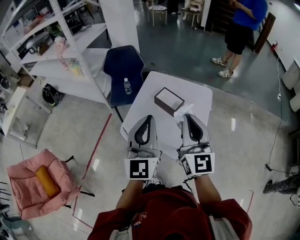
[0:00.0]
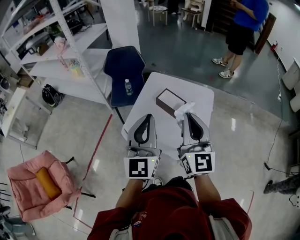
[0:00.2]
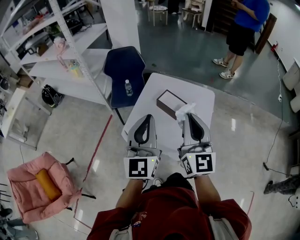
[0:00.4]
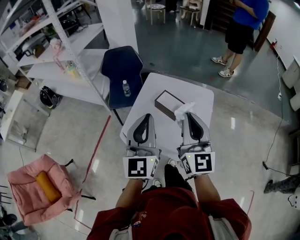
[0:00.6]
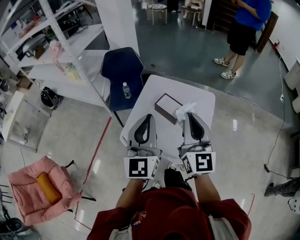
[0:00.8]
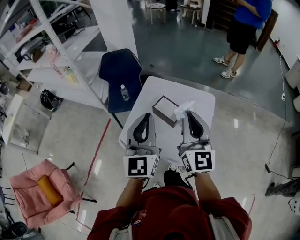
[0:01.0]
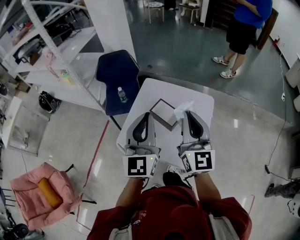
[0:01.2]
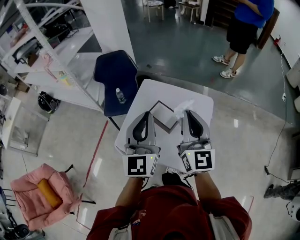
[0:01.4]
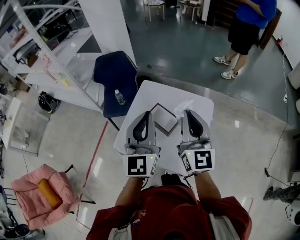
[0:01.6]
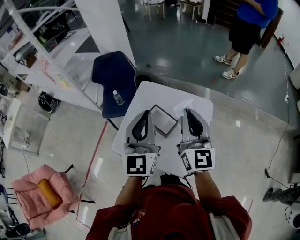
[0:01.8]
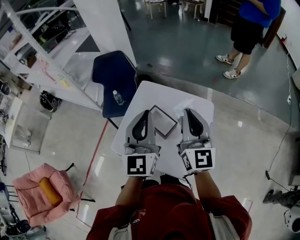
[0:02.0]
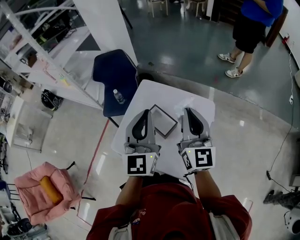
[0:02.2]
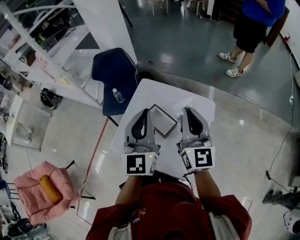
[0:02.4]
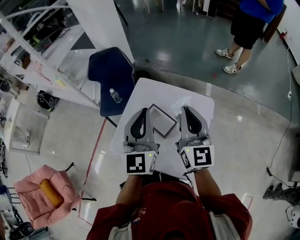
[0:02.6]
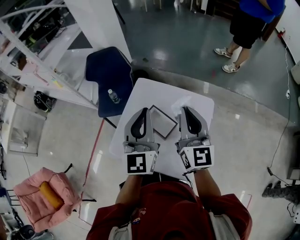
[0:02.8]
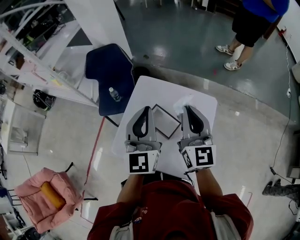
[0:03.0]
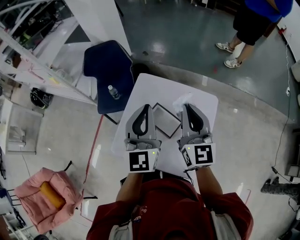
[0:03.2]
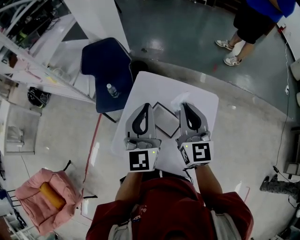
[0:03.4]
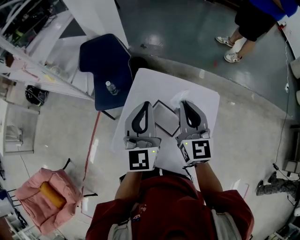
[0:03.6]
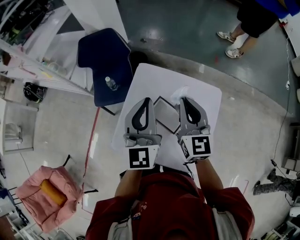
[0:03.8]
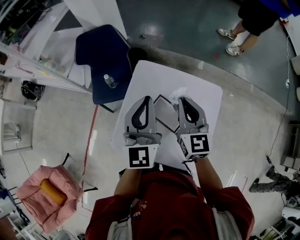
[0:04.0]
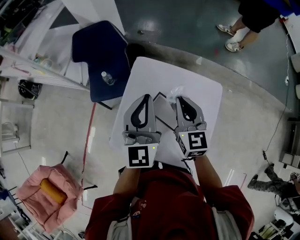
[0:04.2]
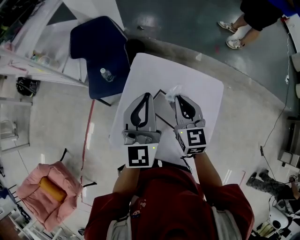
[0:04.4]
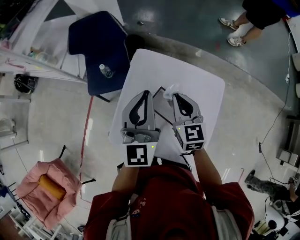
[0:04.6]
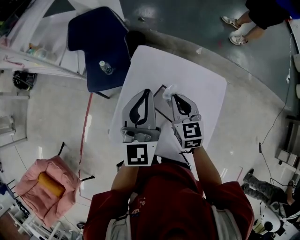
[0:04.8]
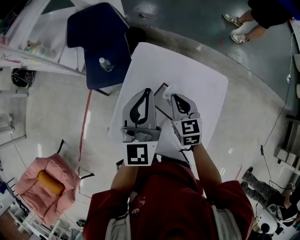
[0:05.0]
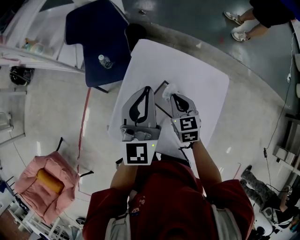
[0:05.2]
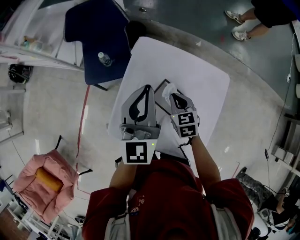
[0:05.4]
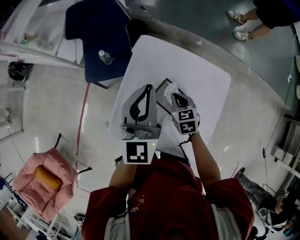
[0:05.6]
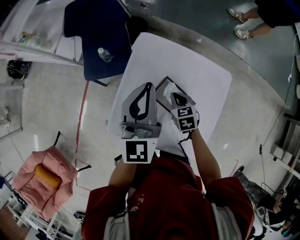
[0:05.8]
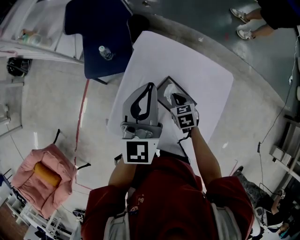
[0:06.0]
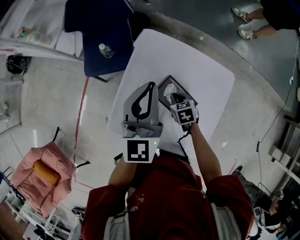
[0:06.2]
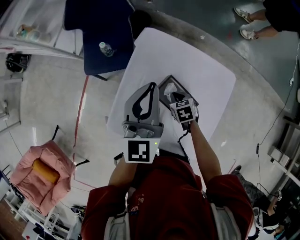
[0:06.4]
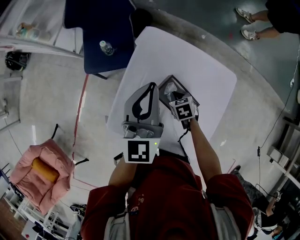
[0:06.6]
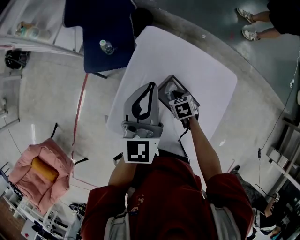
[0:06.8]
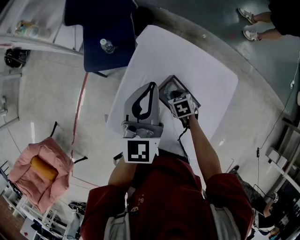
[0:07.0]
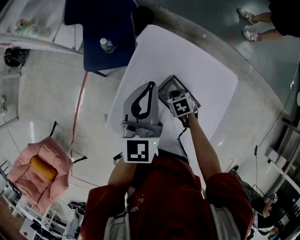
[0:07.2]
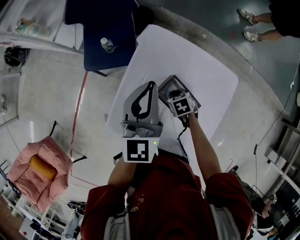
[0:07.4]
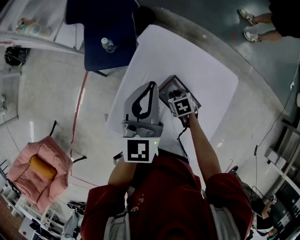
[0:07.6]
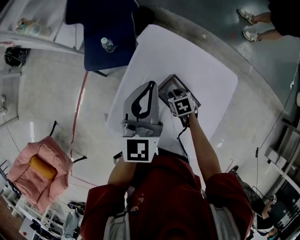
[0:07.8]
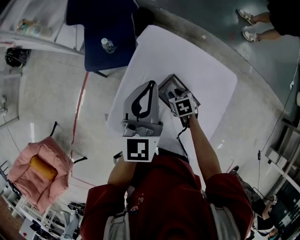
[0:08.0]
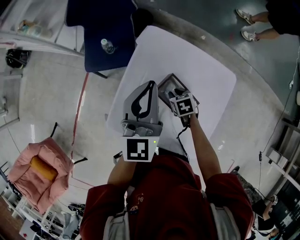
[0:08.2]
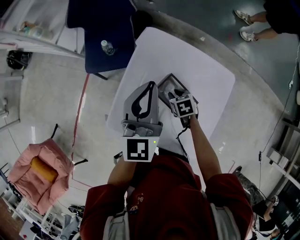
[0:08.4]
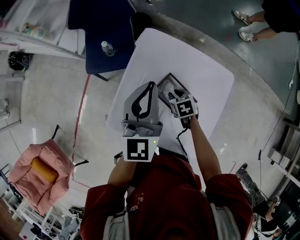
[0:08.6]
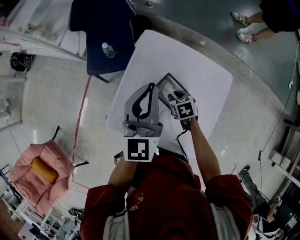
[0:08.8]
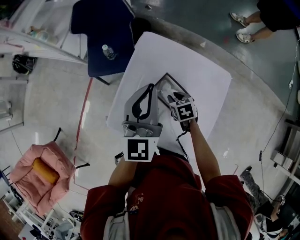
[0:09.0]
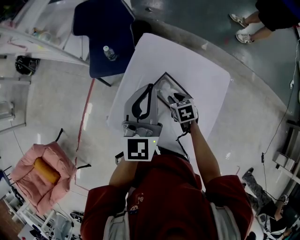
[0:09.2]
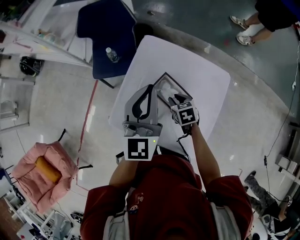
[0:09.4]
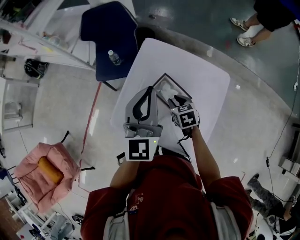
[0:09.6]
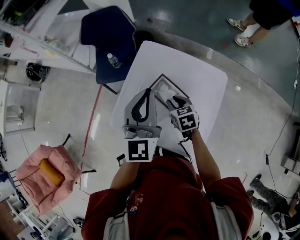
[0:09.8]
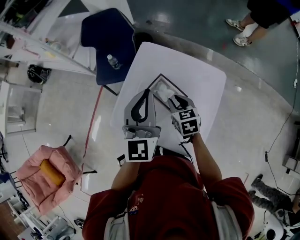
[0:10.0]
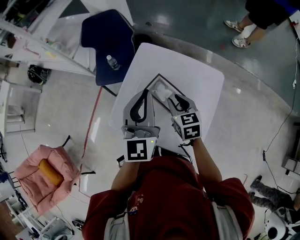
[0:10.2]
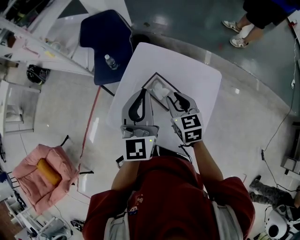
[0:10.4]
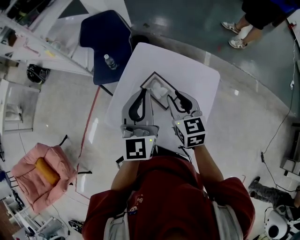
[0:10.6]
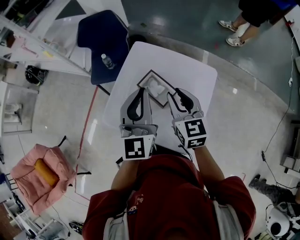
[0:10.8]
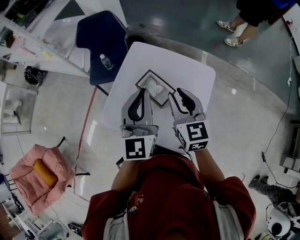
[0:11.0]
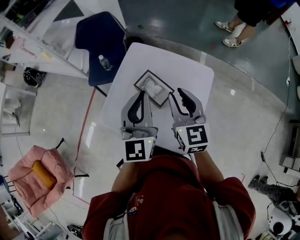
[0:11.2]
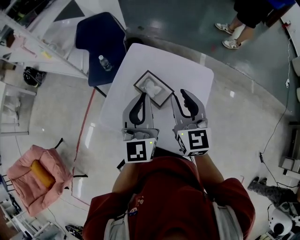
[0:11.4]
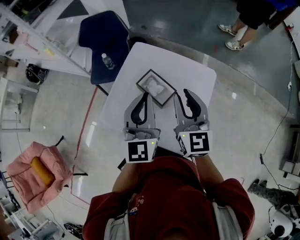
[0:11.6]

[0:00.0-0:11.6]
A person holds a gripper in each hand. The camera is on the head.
0:00.0 to 0:01.4: The grippers both shift forward by about 20 cm.
0:01.4 to 0:02.8: The grippers both shift forward by approximately 10 cm.
0:02.8 to 0:04.4: The right gripper is displaced downward, forward and to the left by approximately 20 cm, and changes its angle by approximately 20 degrees; the left gripper moves forward, to the left and downward, approximately 15 cm.
0:04.4 to 0:05.8: The right gripper moves downward, approximately 20 cm, and angles its fingers downward, by some 30 degrees; the left gripper moves approximately 5 cm.
0:05.8 to 0:07.2: The left gripper moves approximately 5 cm. The right gripper moves downward, roughly 10 cm, and turns by about 20 degrees.
0:07.2 to 0:08.8: The left gripper changes place by roughly 5 cm. The right gripper heads upward, covering approximately 5 cm, and opens up.
0:08.8 to 0:10.2: The left gripper goes roughly 15 cm backward and upward, while the right gripper is displaced upward and backward by approximately 20 cm, and rotates roughly 30 degrees.
0:10.2 to 0:11.6: The right gripper is displaced upward and backward by about 15 cm, and swivels some 30 degrees. Meanwhile the left gripper heads backward, covering approximately 5 cm.

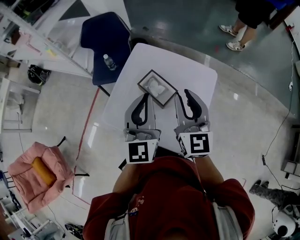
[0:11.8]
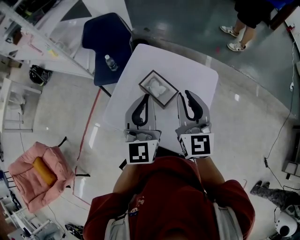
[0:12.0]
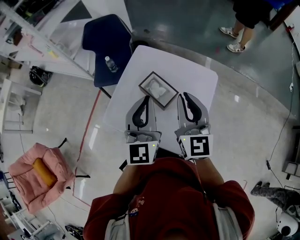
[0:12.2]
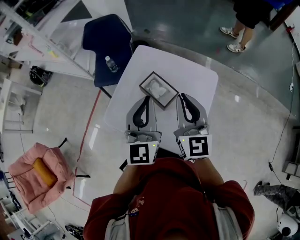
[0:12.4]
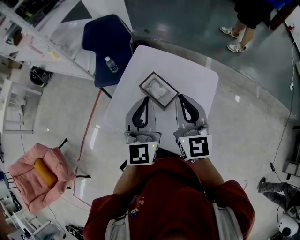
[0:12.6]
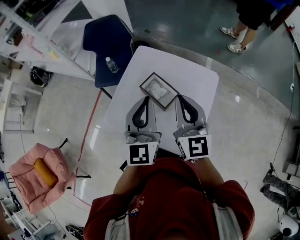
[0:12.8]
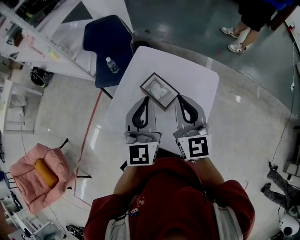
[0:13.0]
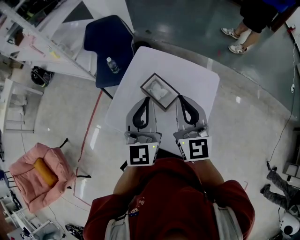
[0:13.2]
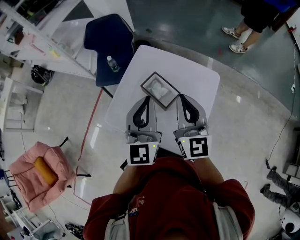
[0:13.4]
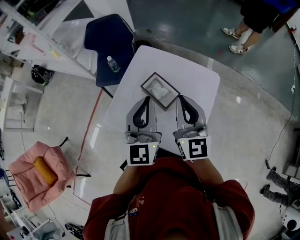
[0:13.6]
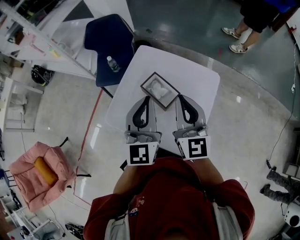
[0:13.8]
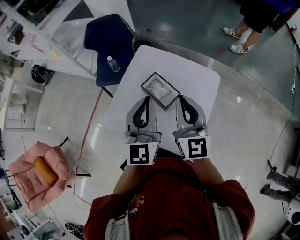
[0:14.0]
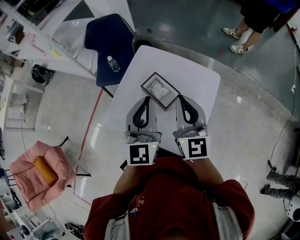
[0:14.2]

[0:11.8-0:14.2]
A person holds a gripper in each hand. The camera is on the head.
0:11.8 to 0:13.0: The right gripper closes up.
0:13.0 to 0:14.2: The grippers stay close to where they were, moving slightly.

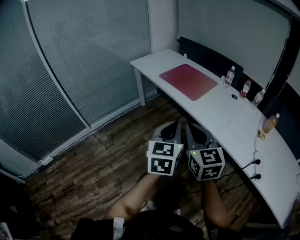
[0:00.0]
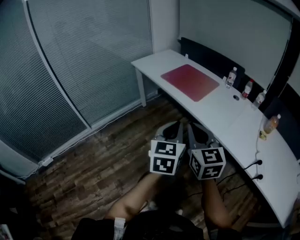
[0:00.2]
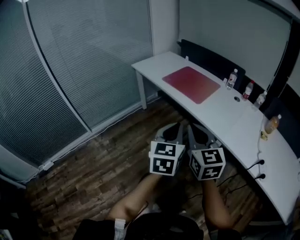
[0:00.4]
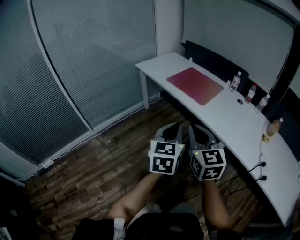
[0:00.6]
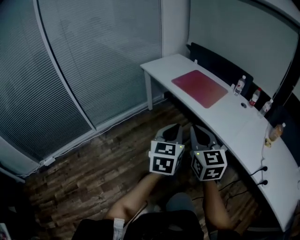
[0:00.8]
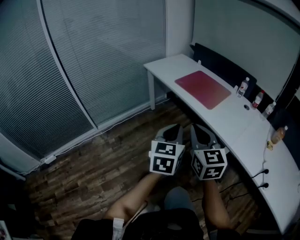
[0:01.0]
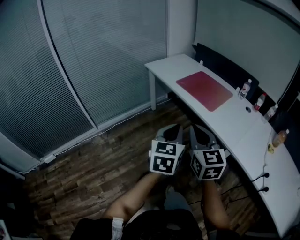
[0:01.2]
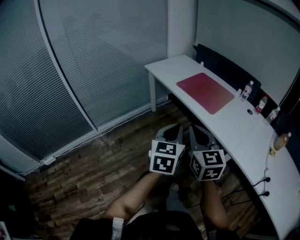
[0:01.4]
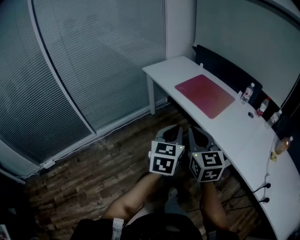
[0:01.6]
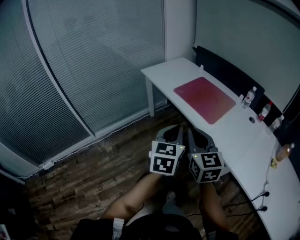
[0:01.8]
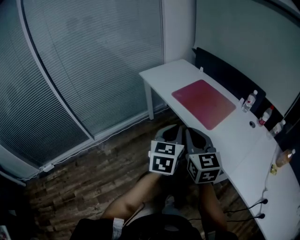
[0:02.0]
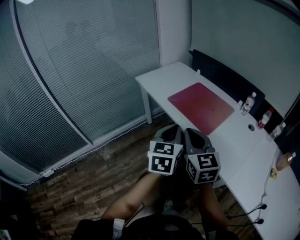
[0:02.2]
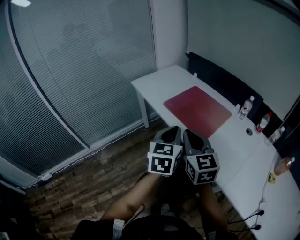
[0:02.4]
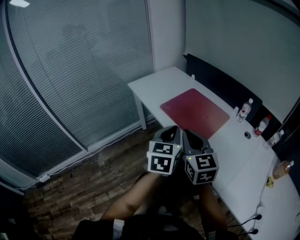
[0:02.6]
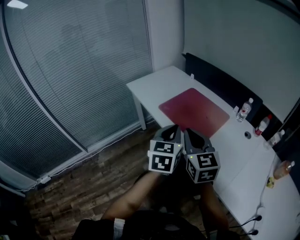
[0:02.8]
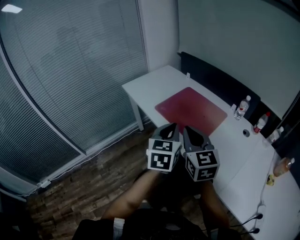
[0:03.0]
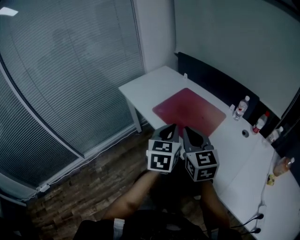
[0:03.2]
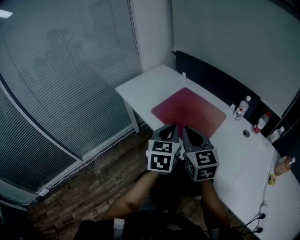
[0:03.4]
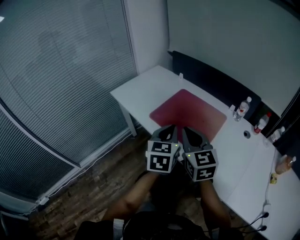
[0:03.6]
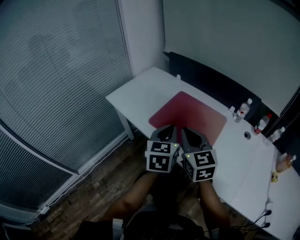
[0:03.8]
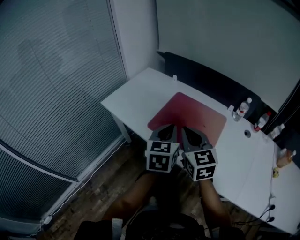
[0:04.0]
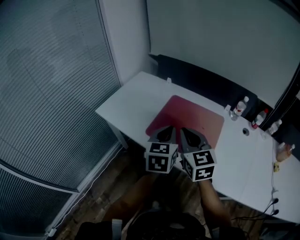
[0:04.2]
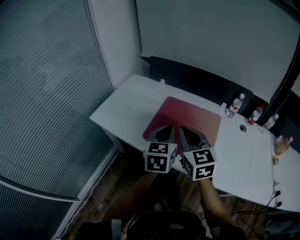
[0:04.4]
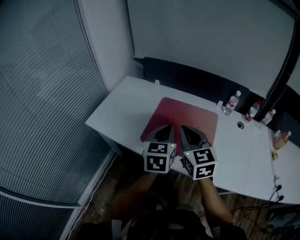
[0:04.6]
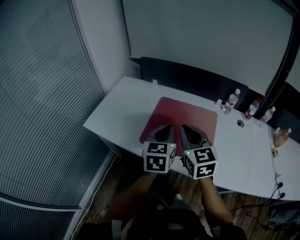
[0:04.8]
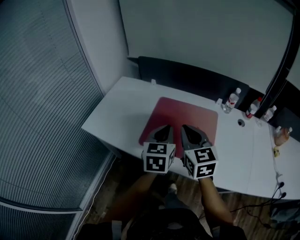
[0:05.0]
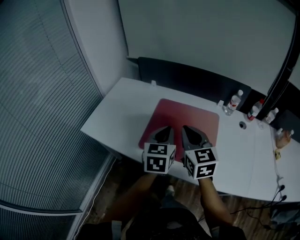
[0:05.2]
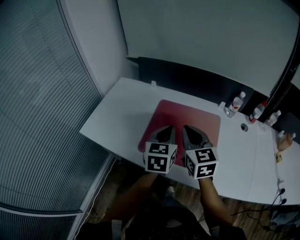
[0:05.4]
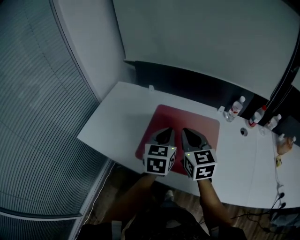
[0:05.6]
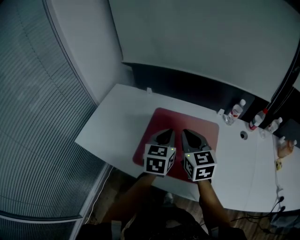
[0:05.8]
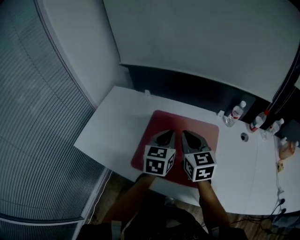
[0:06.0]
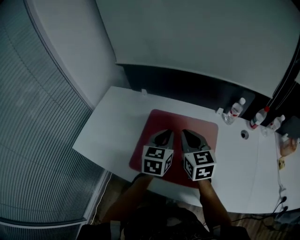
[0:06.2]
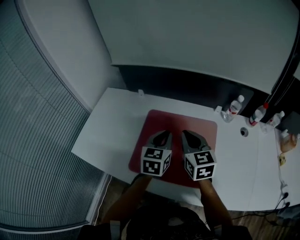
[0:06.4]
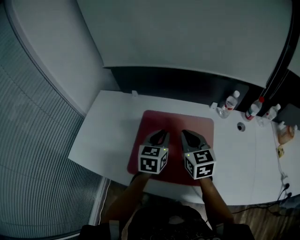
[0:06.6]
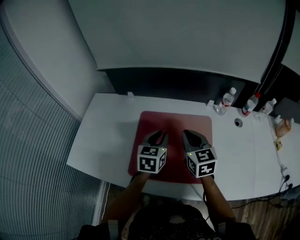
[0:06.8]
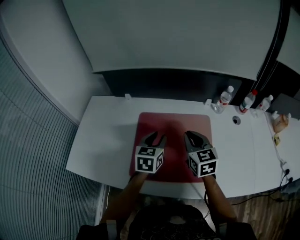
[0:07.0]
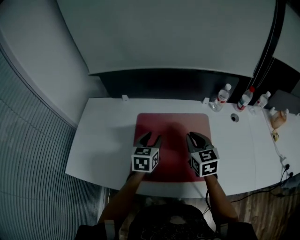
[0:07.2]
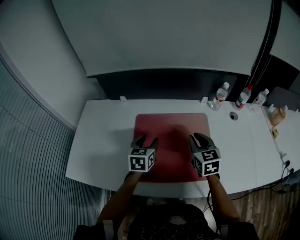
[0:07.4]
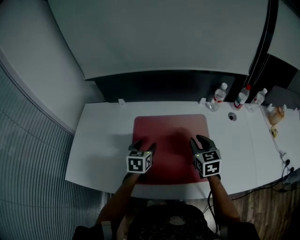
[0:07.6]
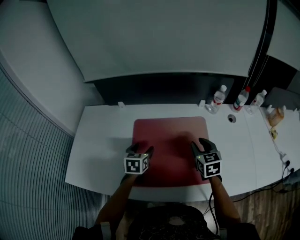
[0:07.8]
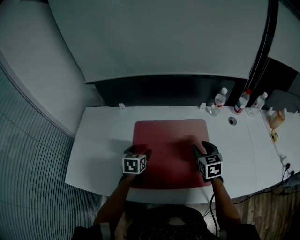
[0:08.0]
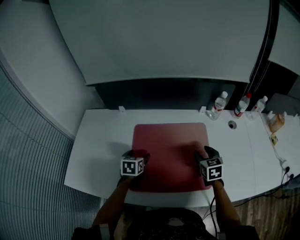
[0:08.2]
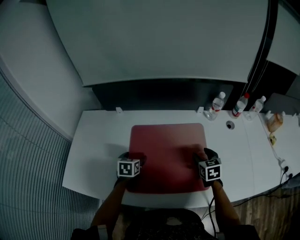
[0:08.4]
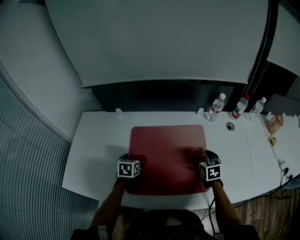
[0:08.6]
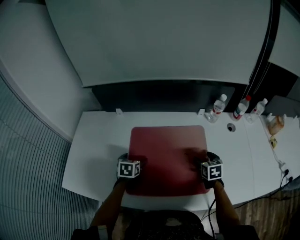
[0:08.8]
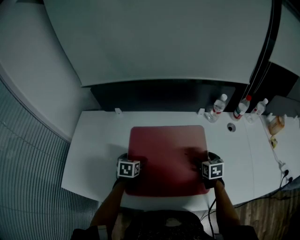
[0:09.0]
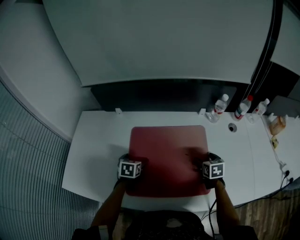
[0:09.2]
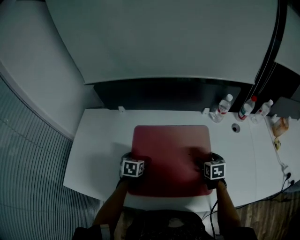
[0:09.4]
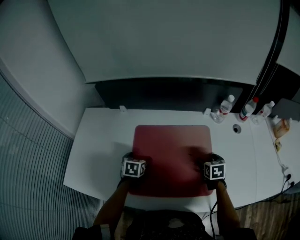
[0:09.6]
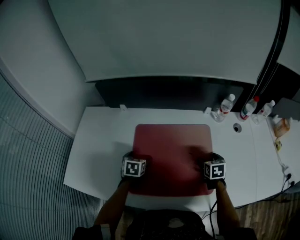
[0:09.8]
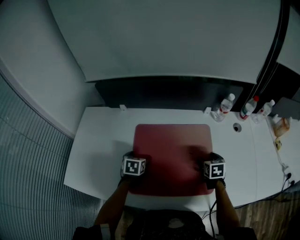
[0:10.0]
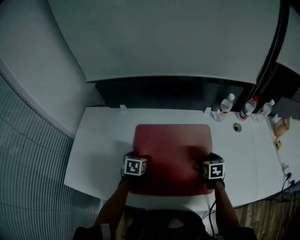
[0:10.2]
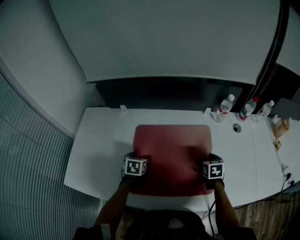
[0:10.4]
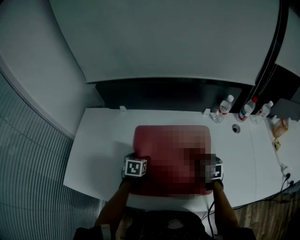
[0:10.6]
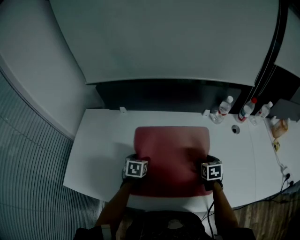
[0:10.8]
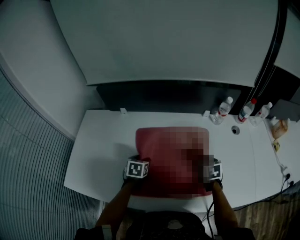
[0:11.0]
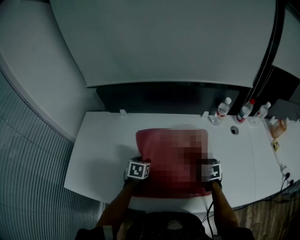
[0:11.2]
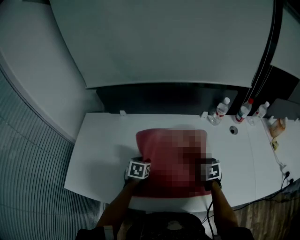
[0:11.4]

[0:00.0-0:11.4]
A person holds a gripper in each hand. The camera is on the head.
0:00.0 to 0:01.4: The two grippers go roughly 15 cm to the left and forward.
0:01.4 to 0:02.8: The grippers both shift forward and to the right by roughly 30 cm.
0:02.8 to 0:04.2: The two grippers go roughly 25 cm forward. The left gripper turns by roughly 20 degrees.
0:04.2 to 0:05.6: Both grippers travel together forward, some 15 cm.
0:05.6 to 0:07.2: The left gripper travels forward and downward by about 15 cm; the right gripper heads downward, forward and to the right, covering roughly 15 cm.
0:07.2 to 0:08.6: The right gripper travels downward and to the right by approximately 15 cm, rotates approximately 20 degrees, and opens its fingers, while the left gripper heads downward and to the left, covering approximately 15 cm, swivels roughly 20 degrees, and opens.
0:08.6 to 0:10.0: There are only small adjustments of the grippers.
0:10.0 to 0:11.4: The left gripper closes up. The right gripper closes up.
